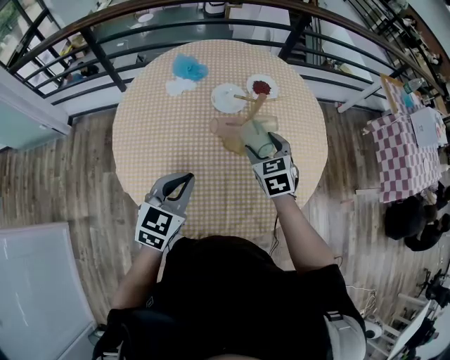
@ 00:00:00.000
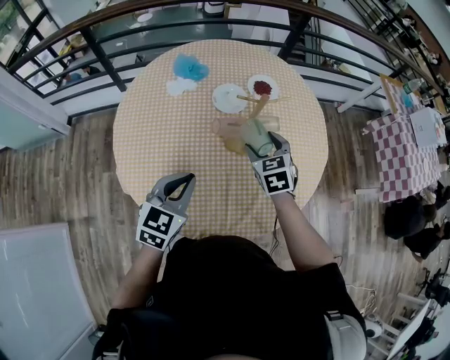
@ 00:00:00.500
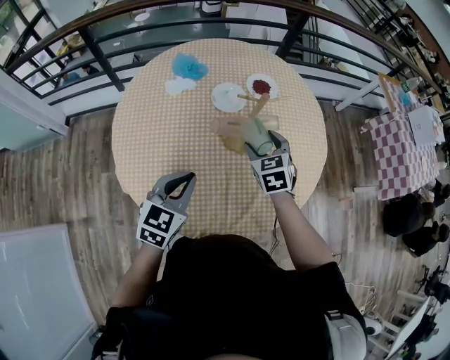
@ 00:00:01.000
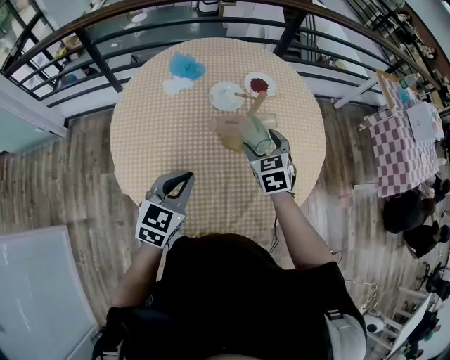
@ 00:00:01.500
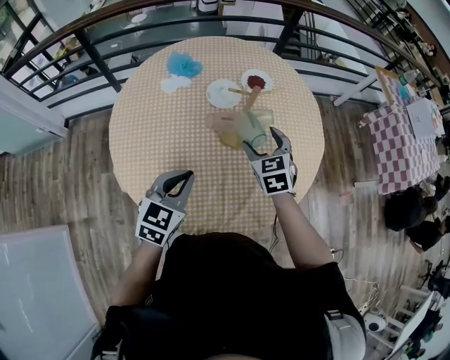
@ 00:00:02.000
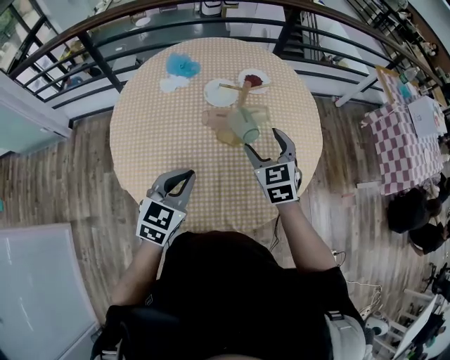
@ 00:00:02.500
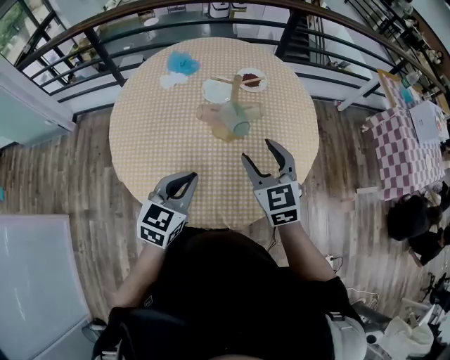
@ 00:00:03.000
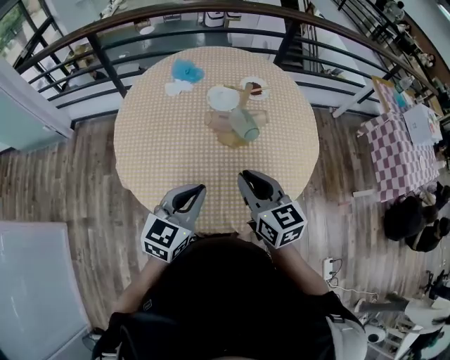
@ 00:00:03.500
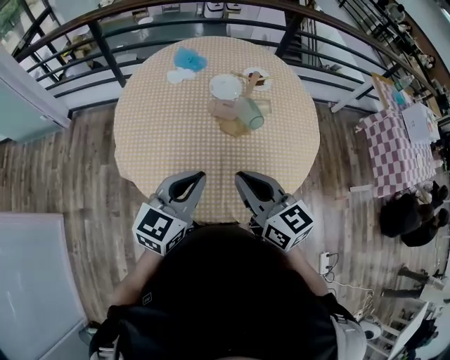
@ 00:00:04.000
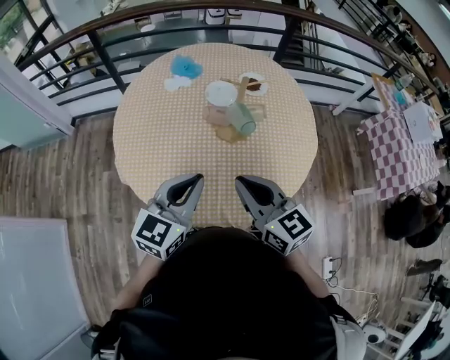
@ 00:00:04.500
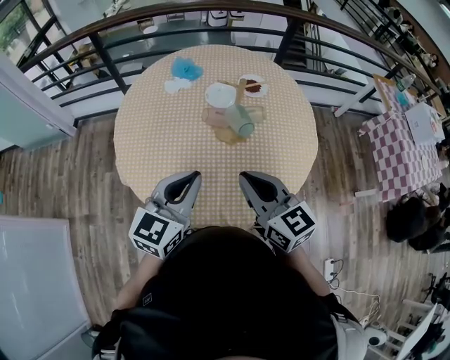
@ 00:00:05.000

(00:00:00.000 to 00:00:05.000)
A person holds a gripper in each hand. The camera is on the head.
00:00:00.000 - 00:00:02.500: The right gripper shifts by about 5 cm.
00:00:02.500 - 00:00:05.000: The right gripper is displaced backward and upward by some 20 cm, rotates about 40 degrees, and closes its fingers. Meanwhile the left gripper goes roughly 10 cm upward and backward.

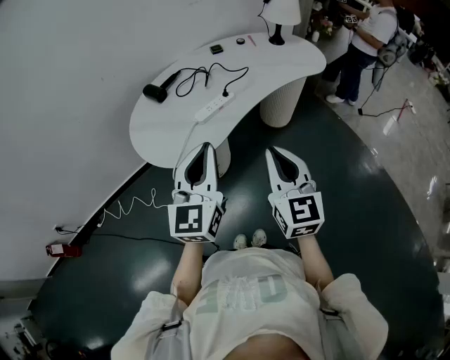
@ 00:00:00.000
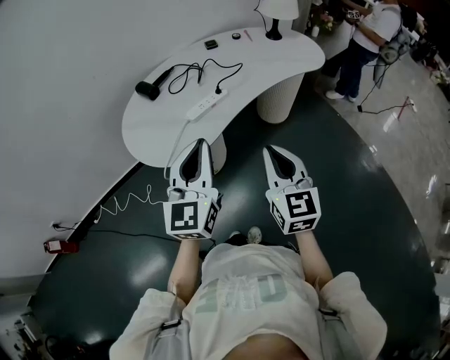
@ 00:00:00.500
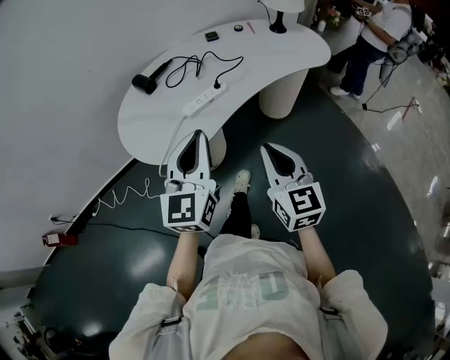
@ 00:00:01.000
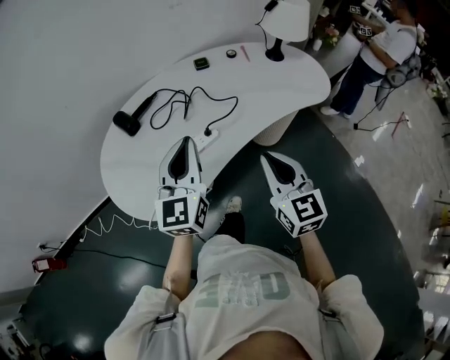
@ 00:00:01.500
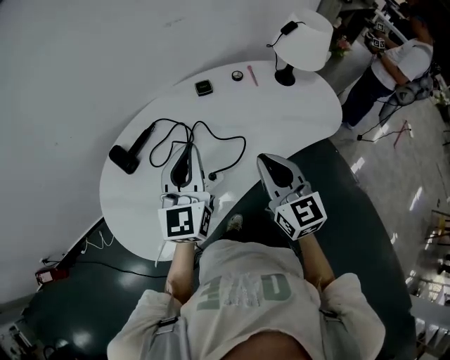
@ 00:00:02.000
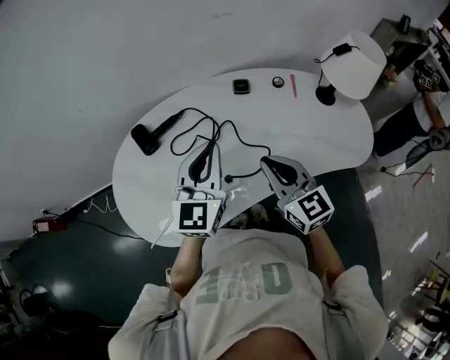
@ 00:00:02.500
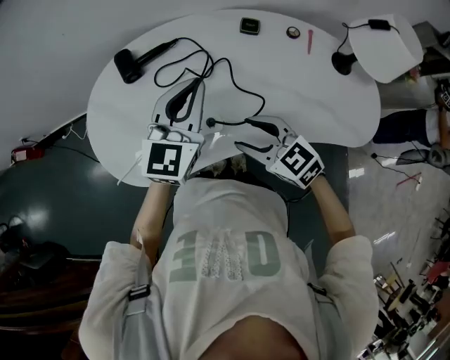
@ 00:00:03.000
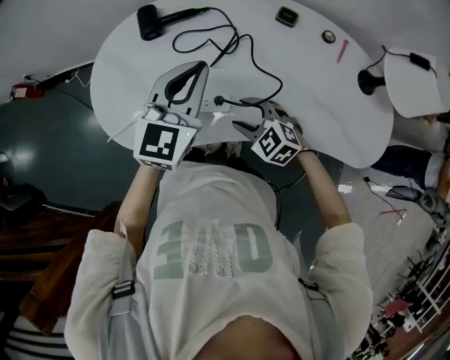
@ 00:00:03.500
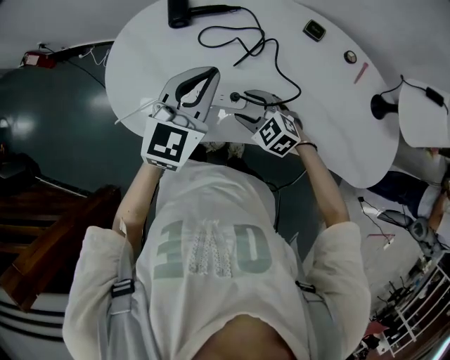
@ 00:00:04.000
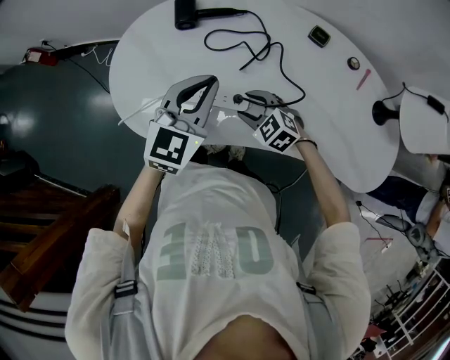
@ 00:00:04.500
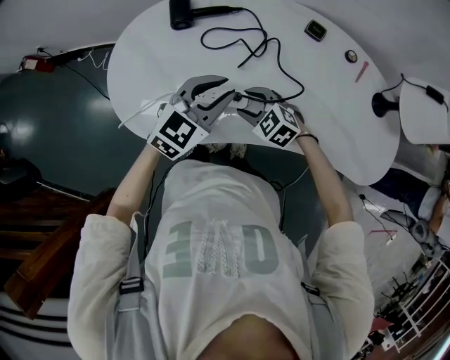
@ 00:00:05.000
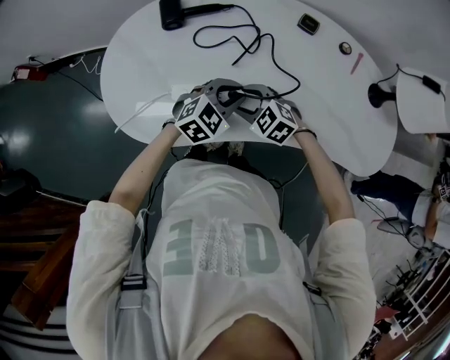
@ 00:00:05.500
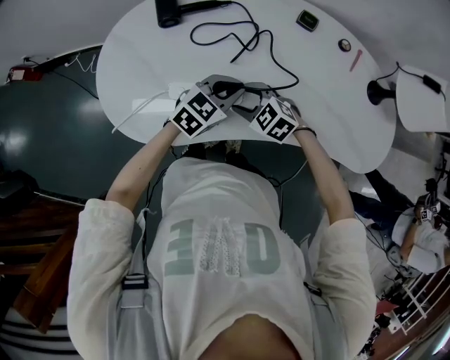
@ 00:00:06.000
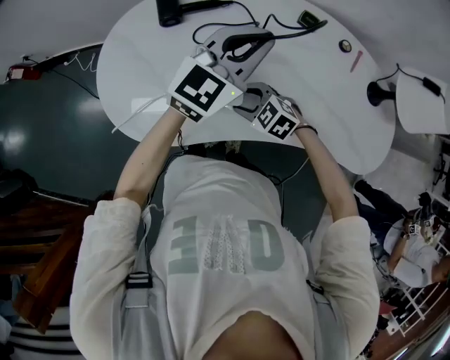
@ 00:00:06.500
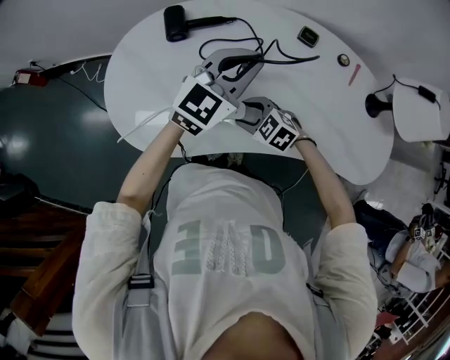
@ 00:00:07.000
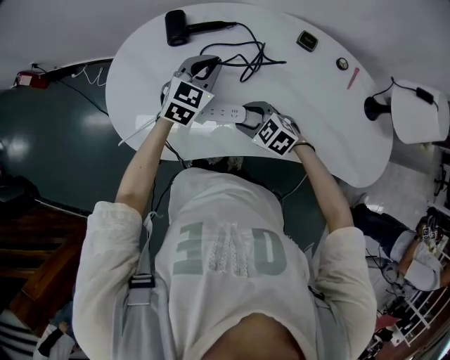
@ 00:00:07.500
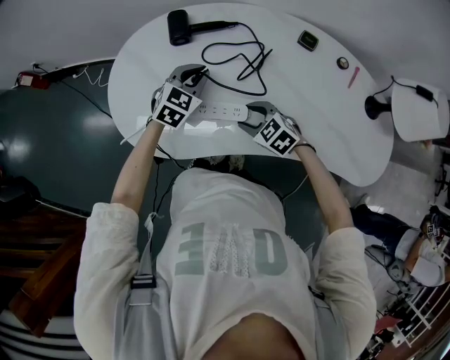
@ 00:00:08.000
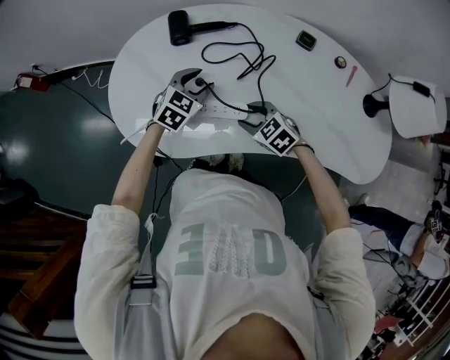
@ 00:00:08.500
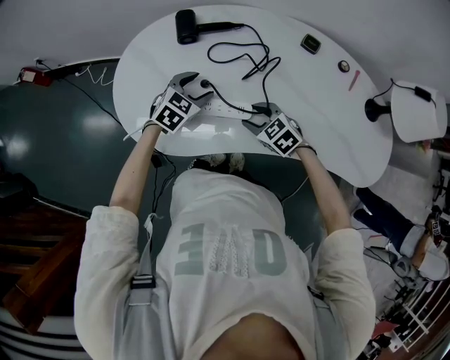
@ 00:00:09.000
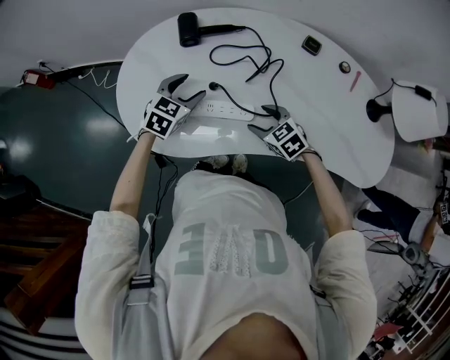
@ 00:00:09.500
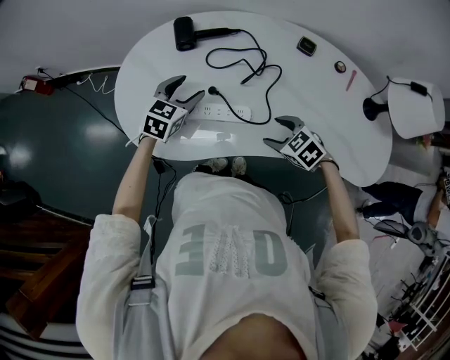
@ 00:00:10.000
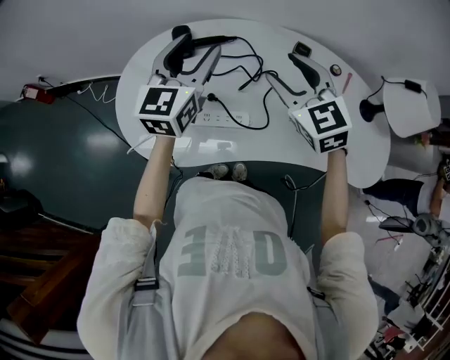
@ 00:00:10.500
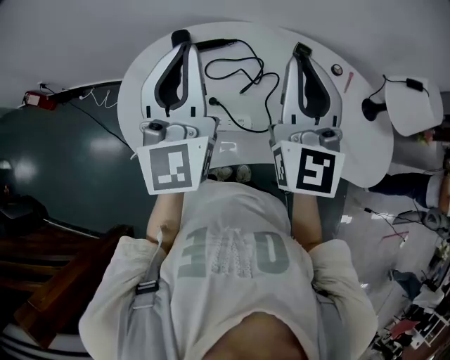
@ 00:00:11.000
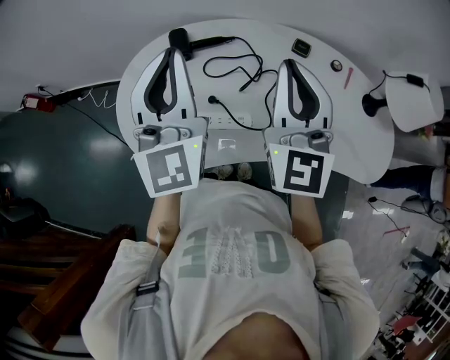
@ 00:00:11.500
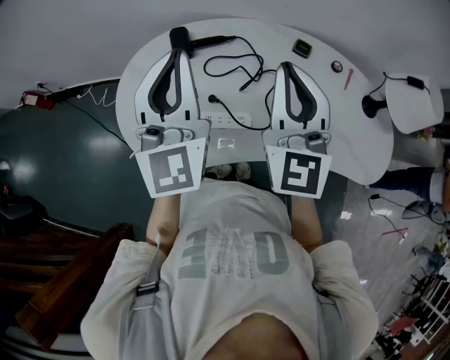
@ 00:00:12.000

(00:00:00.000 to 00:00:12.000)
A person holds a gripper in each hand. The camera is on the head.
00:00:00.000 - 00:00:02.000: Both grippers move forward, about 40 cm.
00:00:02.000 - 00:00:04.000: The right gripper shifts approximately 25 cm downward, angles its fingers downward, by about 30 degrees, and opens up. The left gripper moves downward, about 10 cm, and swivels approximately 30 degrees.
00:00:04.000 - 00:00:06.000: The left gripper is displaced downward and to the right by approximately 15 cm, and rotates about 40 degrees.
00:00:06.000 - 00:00:08.000: The left gripper is displaced forward and to the left by some 15 cm, moves some 20 cm upward and comes back, and turns by some 20 degrees.
00:00:08.000 - 00:00:10.000: The left gripper heads to the left, covering some 5 cm, and opens its fingers. The right gripper shifts about 10 cm to the right and backward.
00:00:10.000 - 00:00:12.000: The grippers both shift upward by roughly 35 cm. The left gripper points its fingers approximately 50 degrees further upward, and closes its fingers. The right gripper tips its fingers upward by about 60 degrees, and closes.

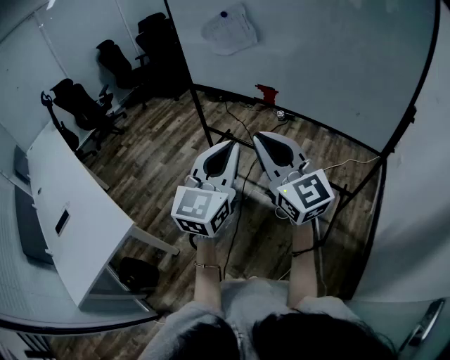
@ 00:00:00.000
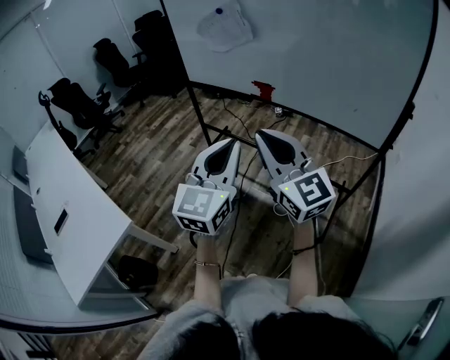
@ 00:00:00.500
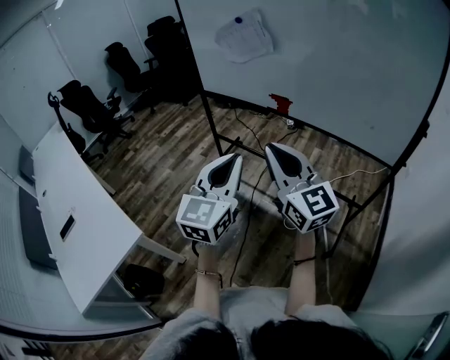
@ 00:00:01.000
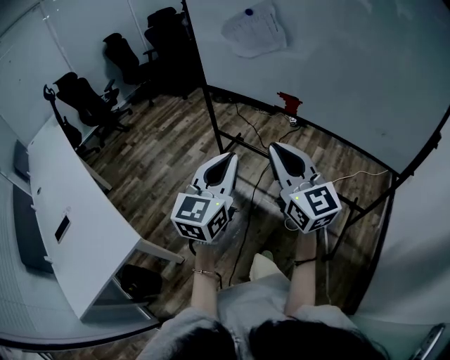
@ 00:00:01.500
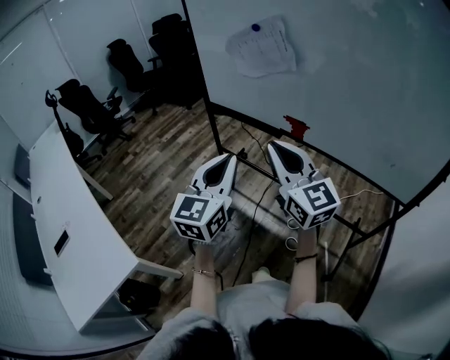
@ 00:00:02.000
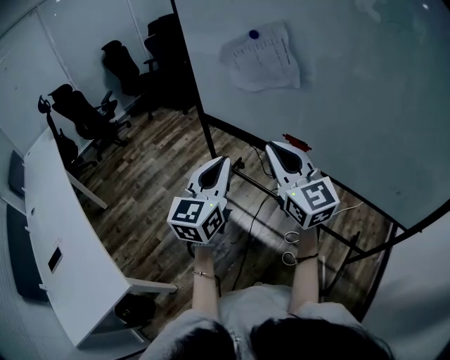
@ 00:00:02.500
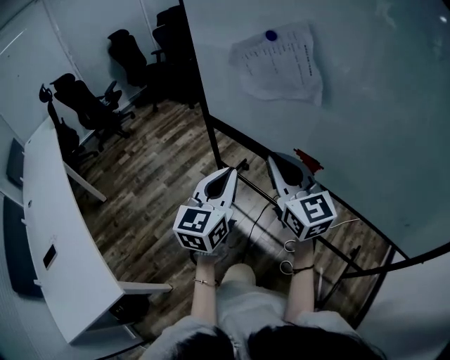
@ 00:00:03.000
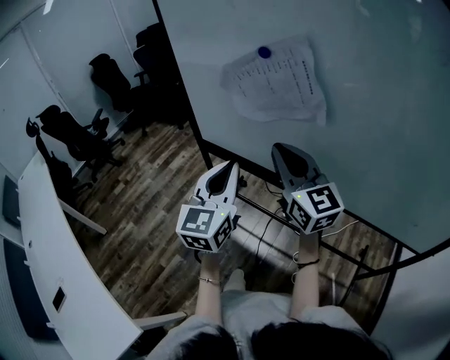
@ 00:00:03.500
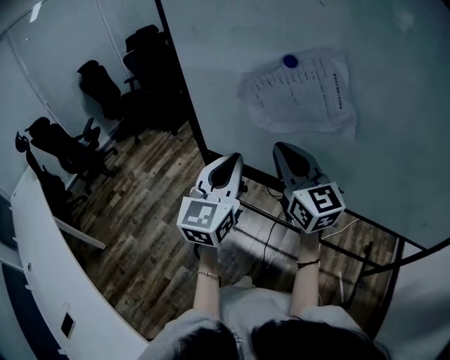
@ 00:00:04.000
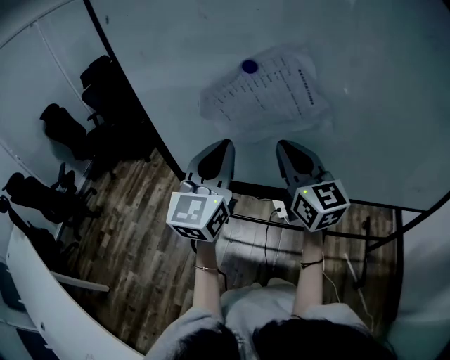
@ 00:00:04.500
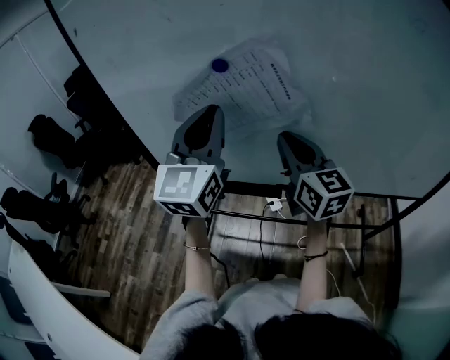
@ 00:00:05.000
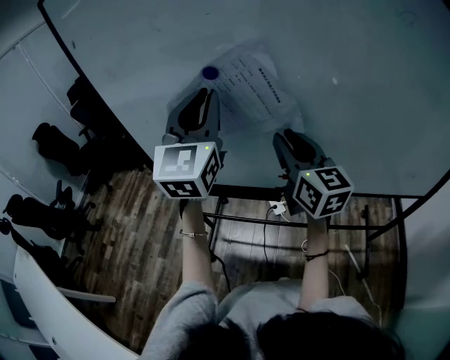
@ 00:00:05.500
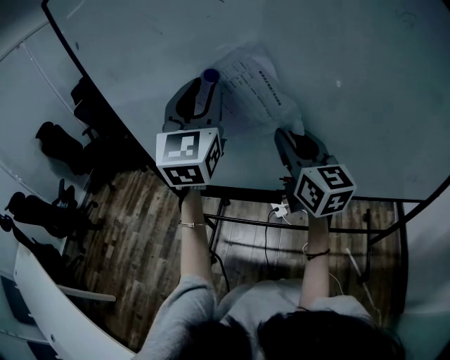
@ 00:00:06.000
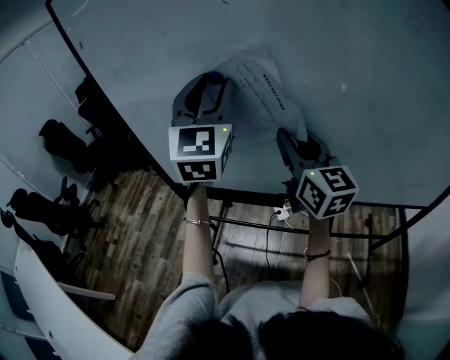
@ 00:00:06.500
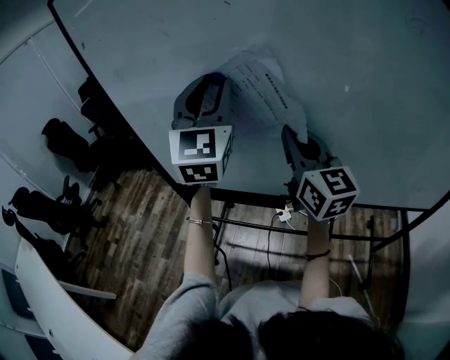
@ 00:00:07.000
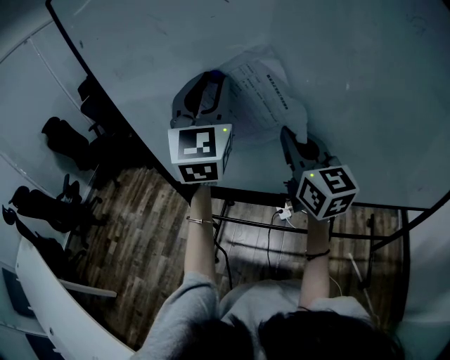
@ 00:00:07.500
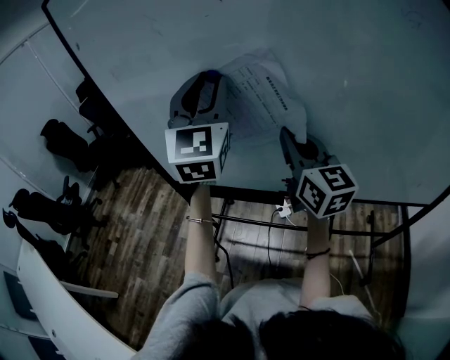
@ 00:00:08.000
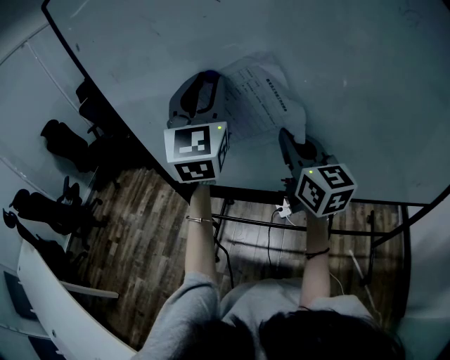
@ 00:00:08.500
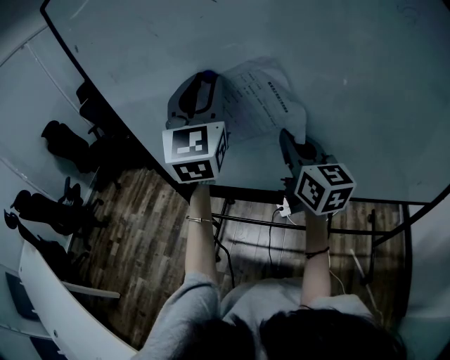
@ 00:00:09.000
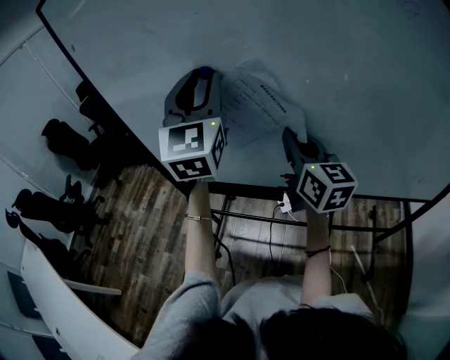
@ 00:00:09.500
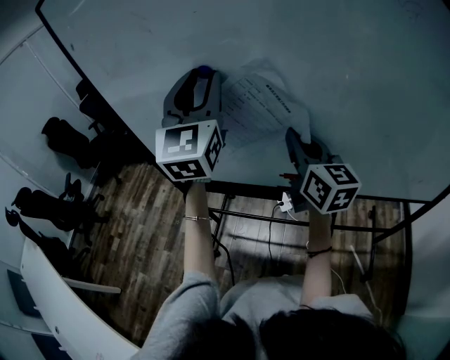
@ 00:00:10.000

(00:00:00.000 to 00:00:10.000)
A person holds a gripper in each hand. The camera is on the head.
00:00:00.000 - 00:00:02.000: Both grippers move forward, some 20 cm.
00:00:02.000 - 00:00:04.000: Both grippers move forward, some 35 cm.
00:00:04.000 - 00:00:06.000: The right gripper is displaced to the right by some 15 cm, rotates roughly 20 degrees, and opens, while the left gripper shifts roughly 20 cm upward, forward and to the right, and opens.
00:00:06.000 - 00:00:08.000: The right gripper closes.
00:00:08.000 - 00:00:10.000: There are only small adjustments of the grippers.
